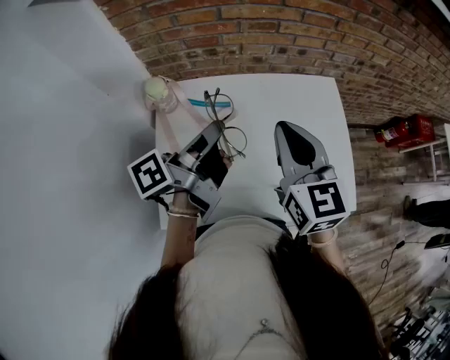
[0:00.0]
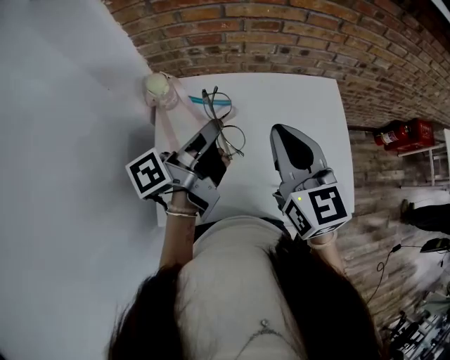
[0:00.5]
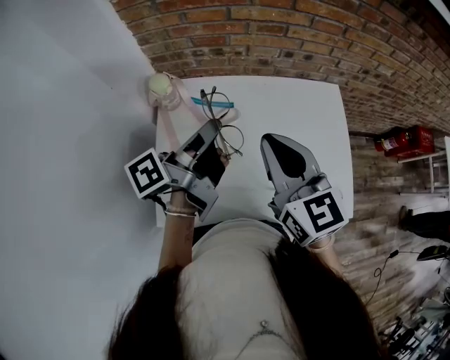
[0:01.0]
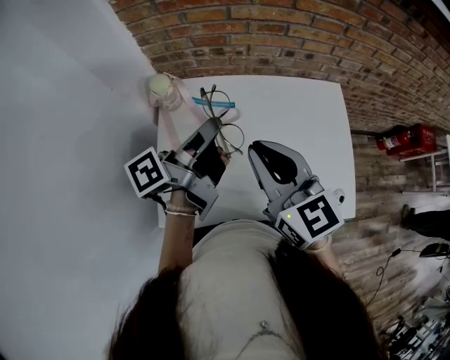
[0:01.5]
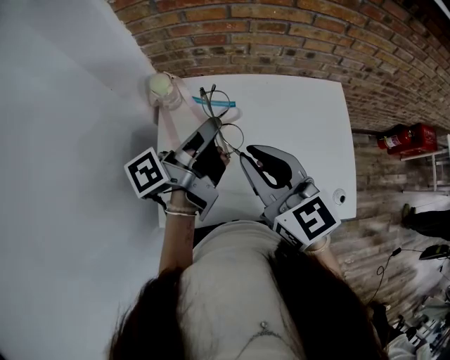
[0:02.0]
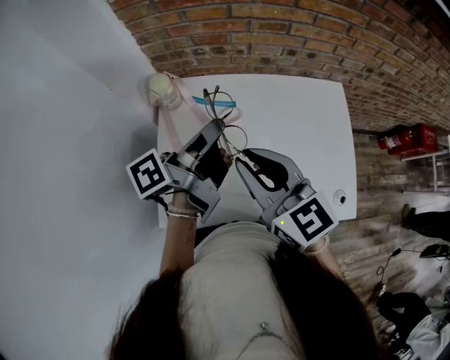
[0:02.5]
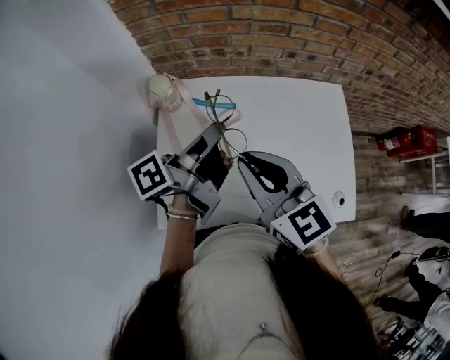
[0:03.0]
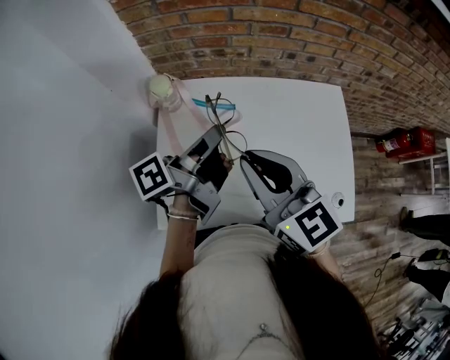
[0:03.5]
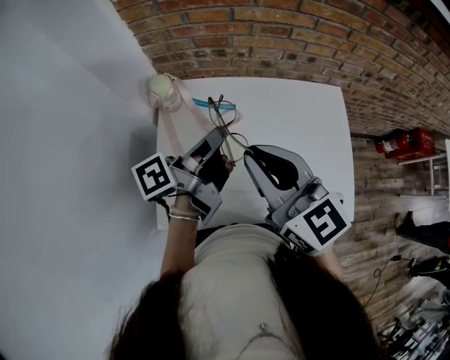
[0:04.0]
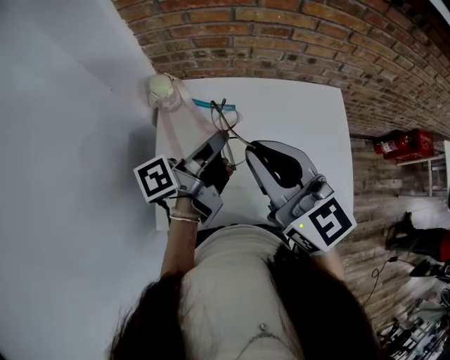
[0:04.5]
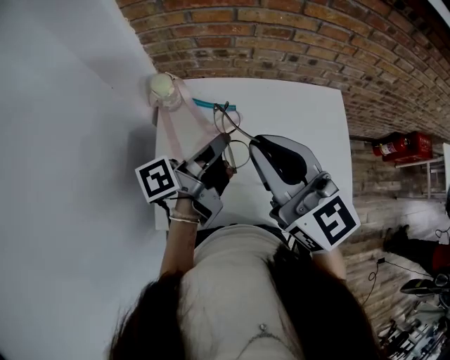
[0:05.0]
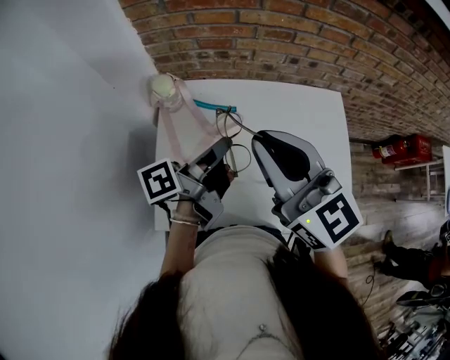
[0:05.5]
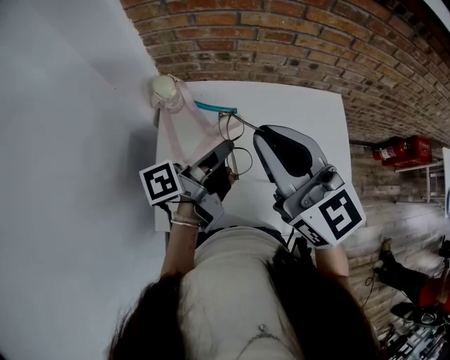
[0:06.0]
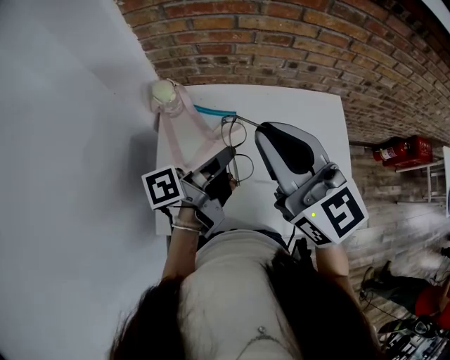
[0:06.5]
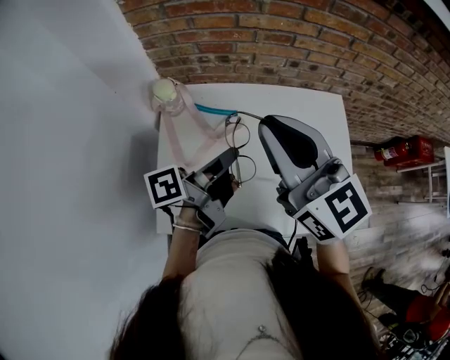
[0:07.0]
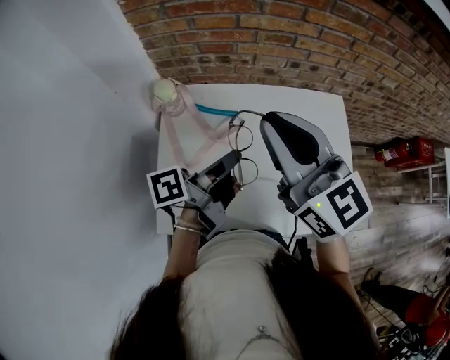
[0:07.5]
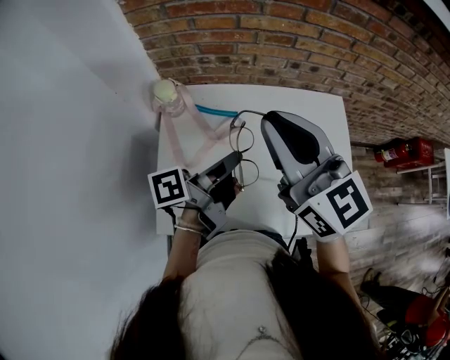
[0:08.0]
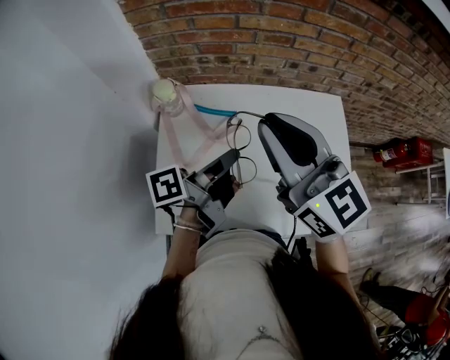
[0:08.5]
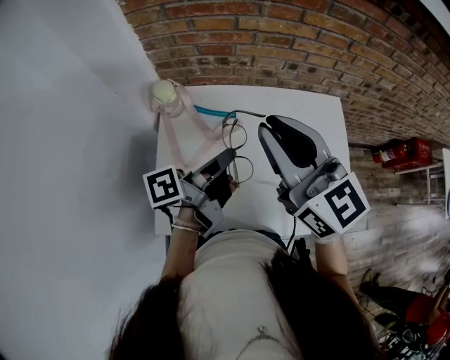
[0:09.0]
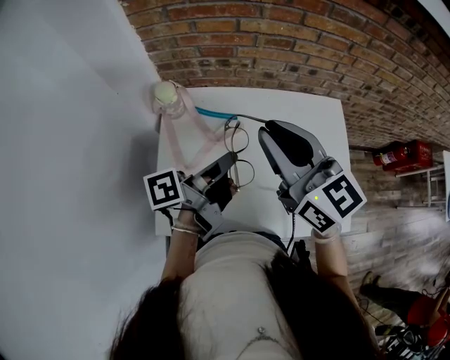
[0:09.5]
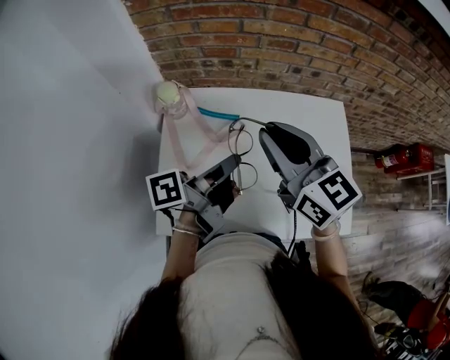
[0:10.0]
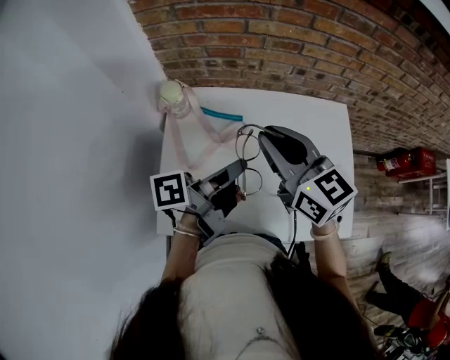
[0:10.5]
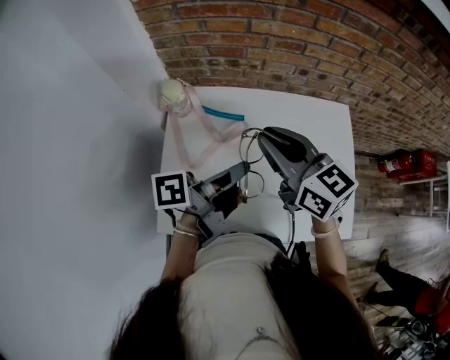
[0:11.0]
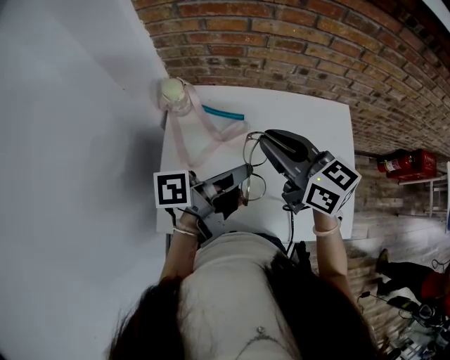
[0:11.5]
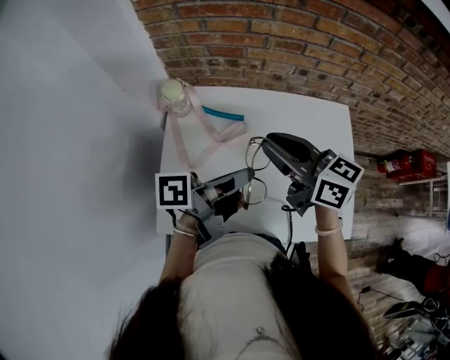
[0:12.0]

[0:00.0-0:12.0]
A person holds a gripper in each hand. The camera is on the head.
0:00.0 to 0:02.0: The right gripper changes place by approximately 10 cm, and turns by about 20 degrees.
0:08.0 to 0:10.0: The right gripper heads downward, covering approximately 5 cm.
0:10.0 to 0:12.0: The right gripper shifts approximately 5 cm downward, and turns by about 20 degrees.

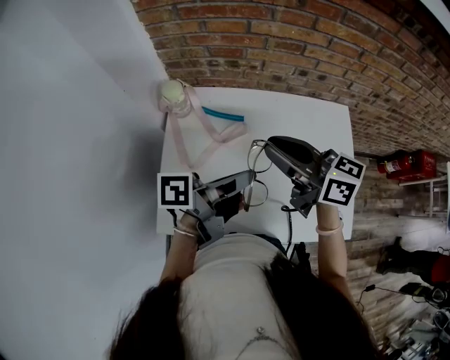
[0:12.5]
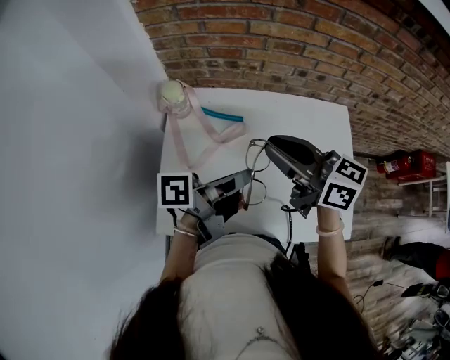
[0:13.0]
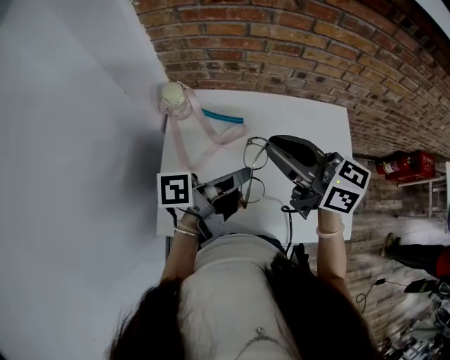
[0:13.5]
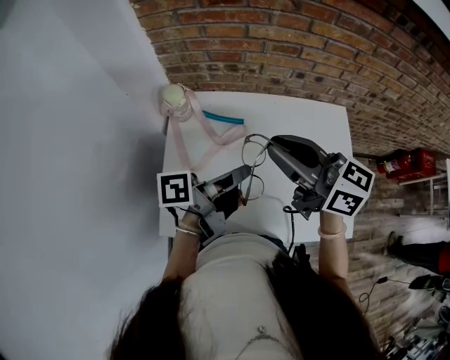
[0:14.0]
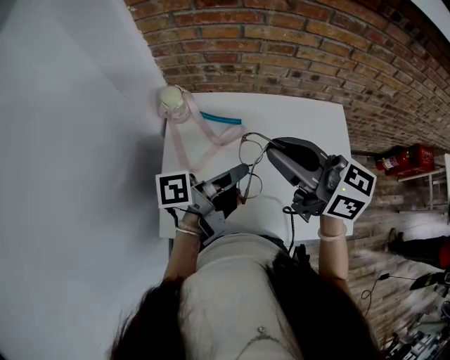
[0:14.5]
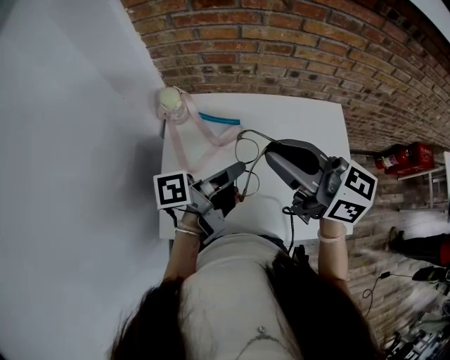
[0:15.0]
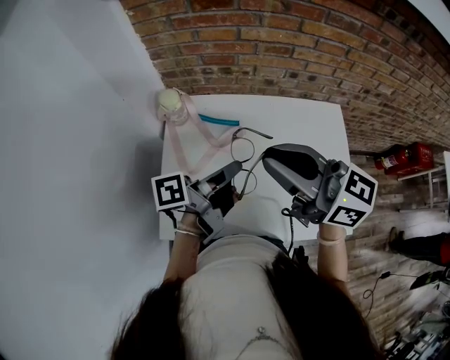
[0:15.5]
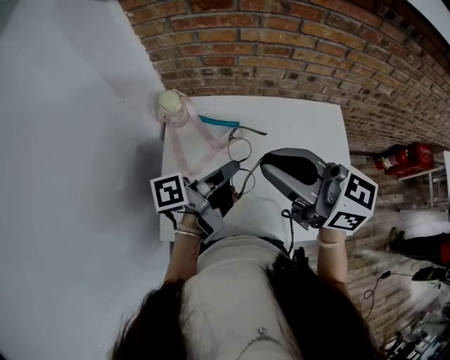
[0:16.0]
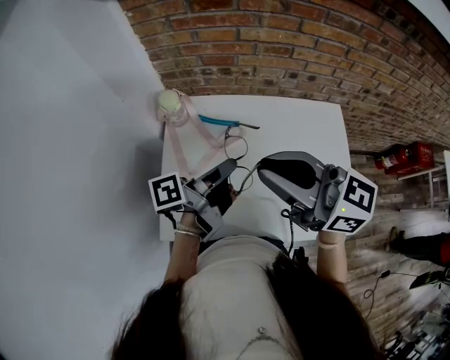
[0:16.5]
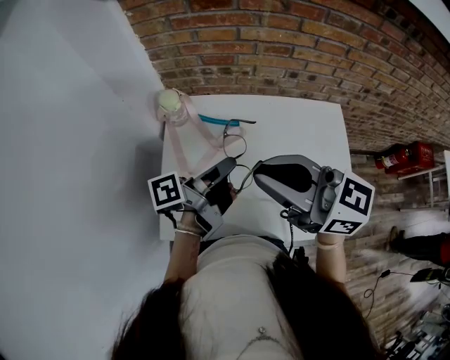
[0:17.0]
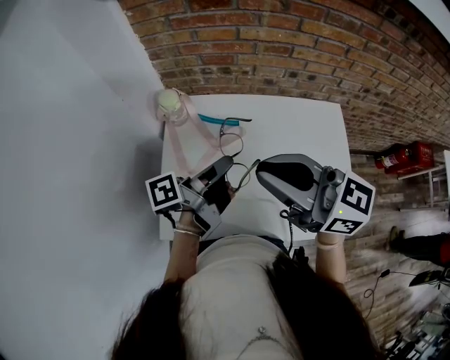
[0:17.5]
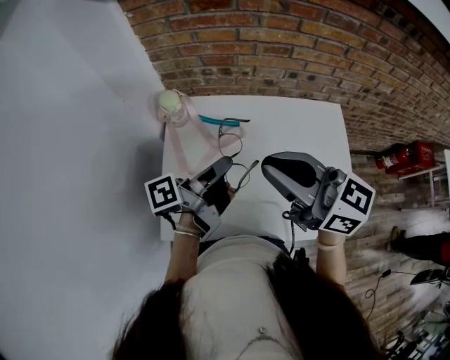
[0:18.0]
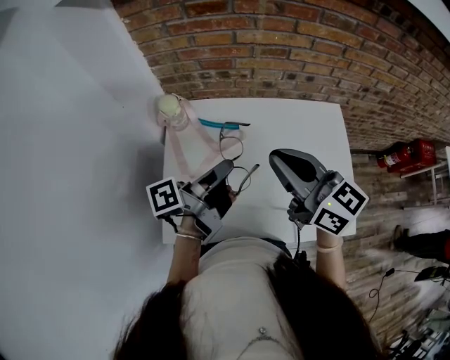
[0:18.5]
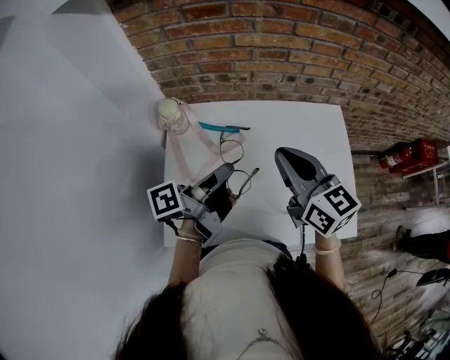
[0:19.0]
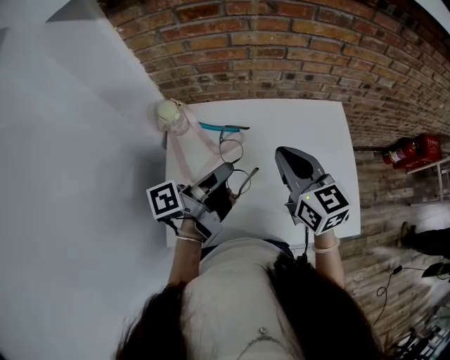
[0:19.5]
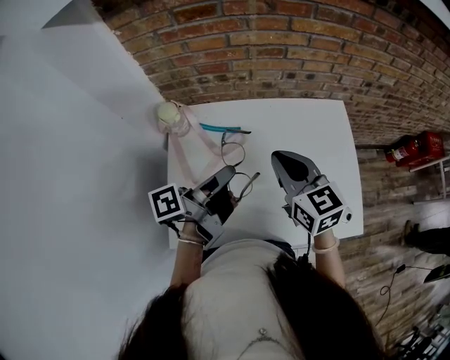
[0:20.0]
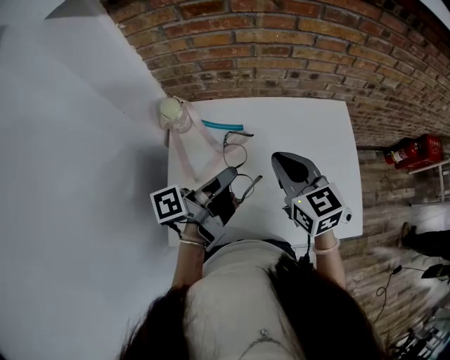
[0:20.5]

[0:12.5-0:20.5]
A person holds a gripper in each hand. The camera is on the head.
0:12.5 to 0:14.5: The right gripper goes roughly 5 cm upward.
0:14.5 to 0:16.5: The right gripper shifts by roughly 5 cm.
0:16.5 to 0:18.5: The right gripper changes place by roughly 5 cm, and turns by some 20 degrees.
0:18.5 to 0:20.5: The right gripper is displaced downward by roughly 10 cm, and changes its angle by some 20 degrees.

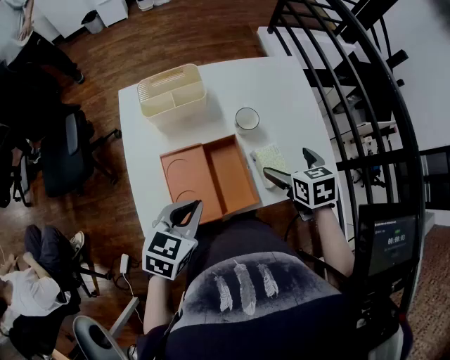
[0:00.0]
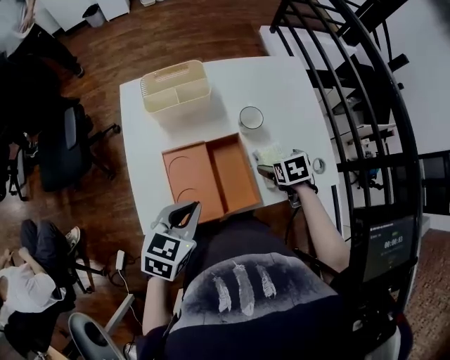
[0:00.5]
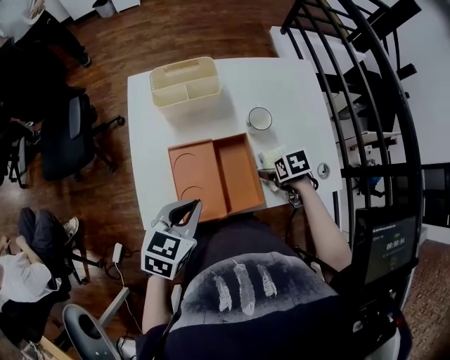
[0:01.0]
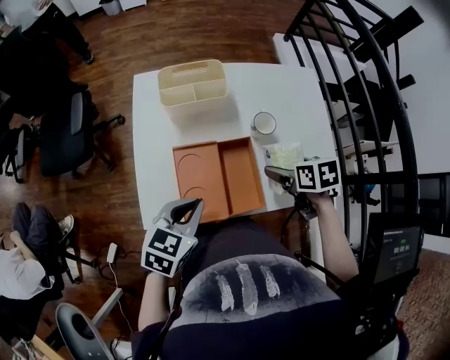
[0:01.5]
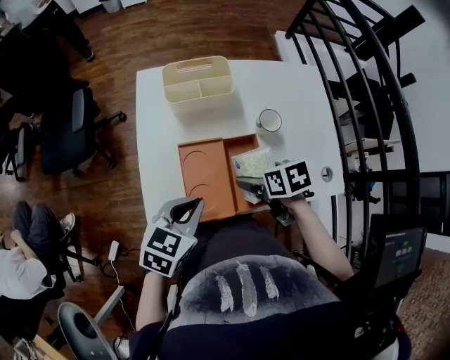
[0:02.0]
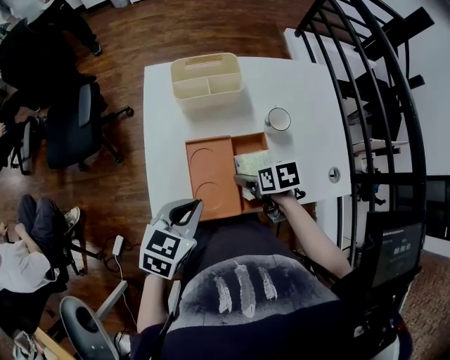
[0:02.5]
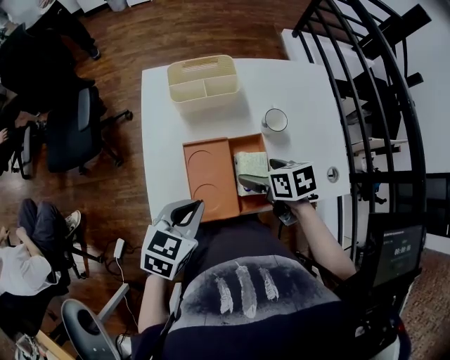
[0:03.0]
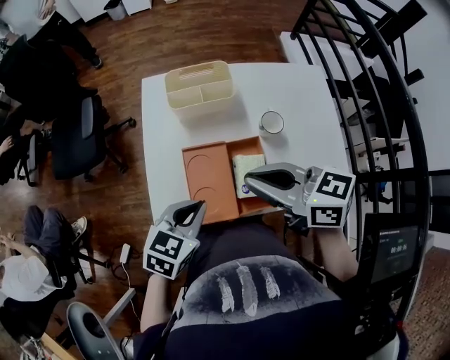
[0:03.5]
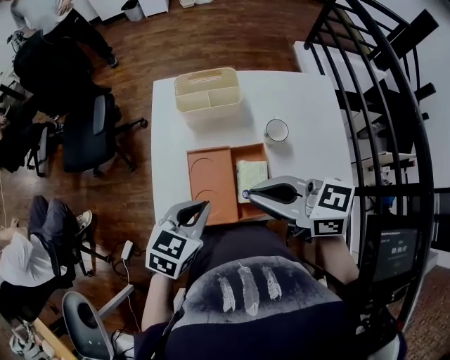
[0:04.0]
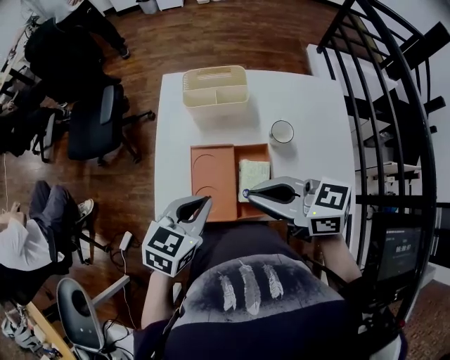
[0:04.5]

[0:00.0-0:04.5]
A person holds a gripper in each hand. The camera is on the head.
0:00.0 to 0:02.0: The right gripper moves approximately 15 cm downward and comes back, and swivels about 30 degrees.
0:02.0 to 0:04.5: The right gripper is displaced upward by approximately 20 cm, tilts its fingers about 40 degrees upward, and closes its fingers.

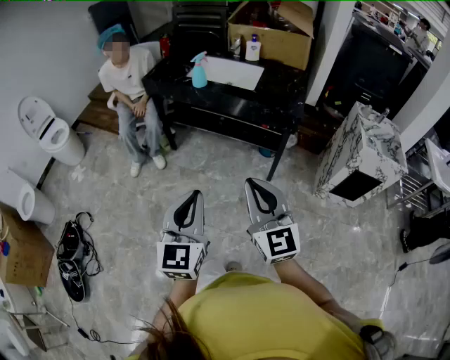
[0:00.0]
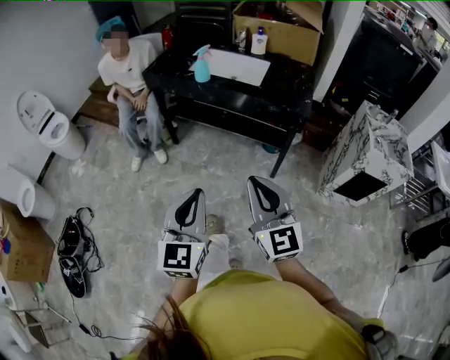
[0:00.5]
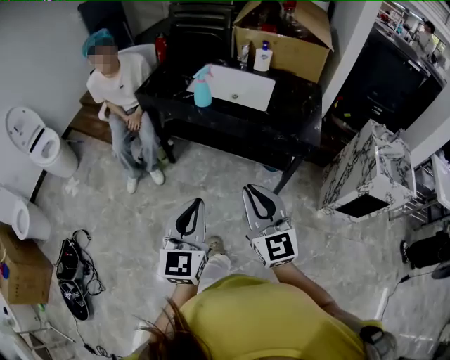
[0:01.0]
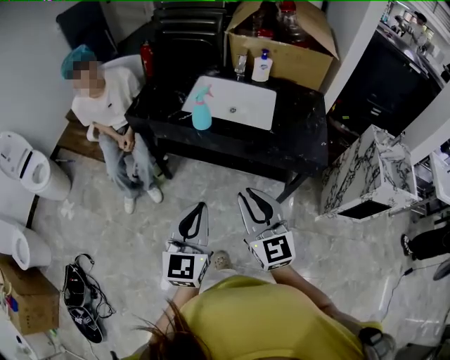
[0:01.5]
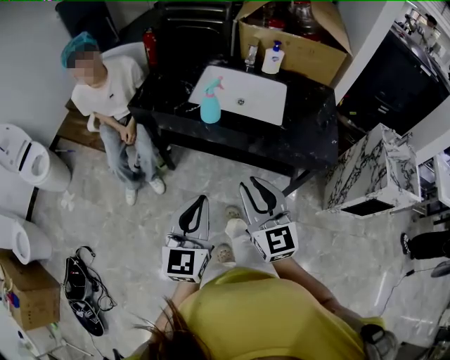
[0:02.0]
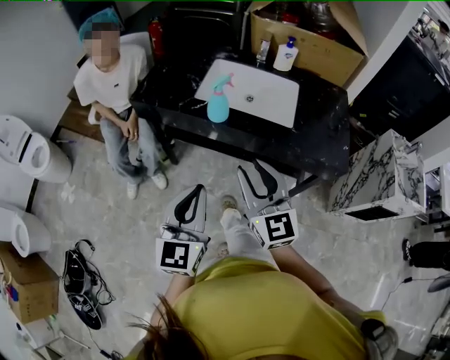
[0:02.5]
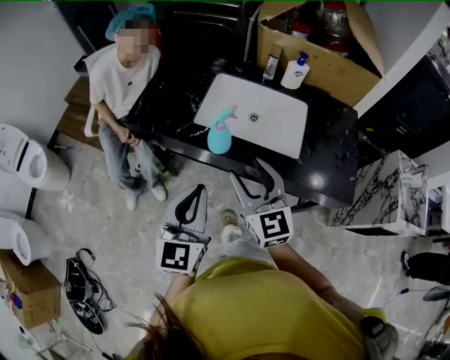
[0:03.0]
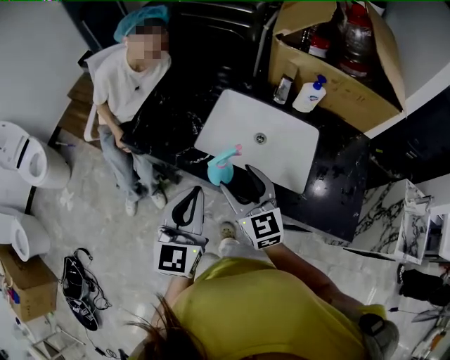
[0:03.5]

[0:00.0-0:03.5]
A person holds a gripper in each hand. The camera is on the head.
0:00.0 to 0:02.0: The grippers both shift forward by approximately 35 cm.
0:02.0 to 0:03.5: Both grippers move forward, roughly 30 cm. The right gripper opens.
